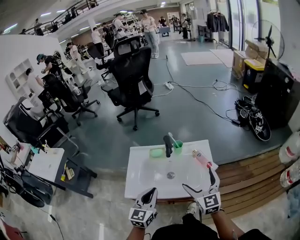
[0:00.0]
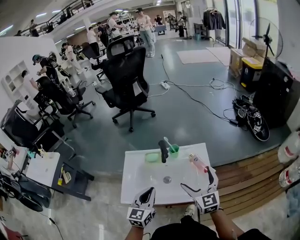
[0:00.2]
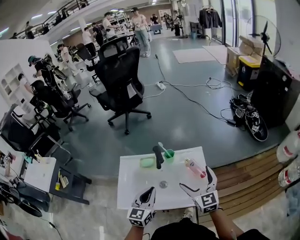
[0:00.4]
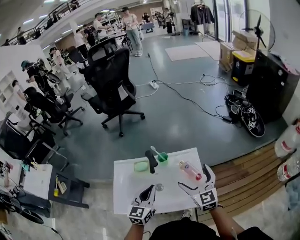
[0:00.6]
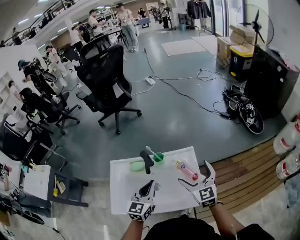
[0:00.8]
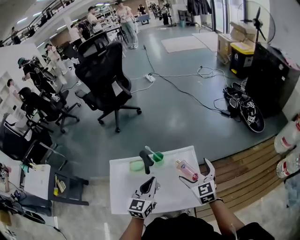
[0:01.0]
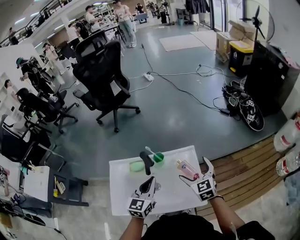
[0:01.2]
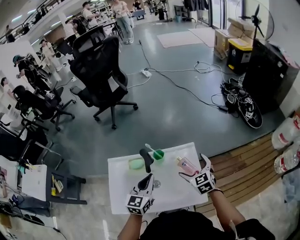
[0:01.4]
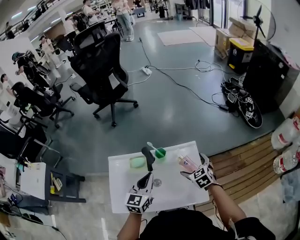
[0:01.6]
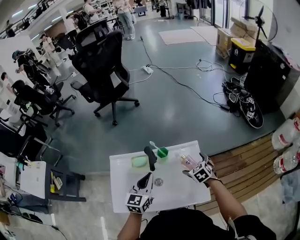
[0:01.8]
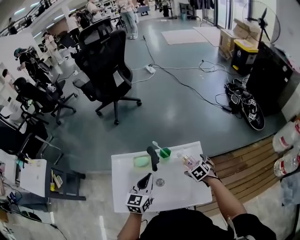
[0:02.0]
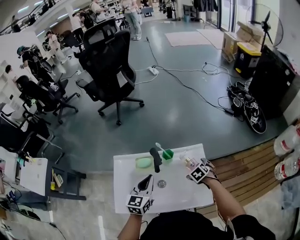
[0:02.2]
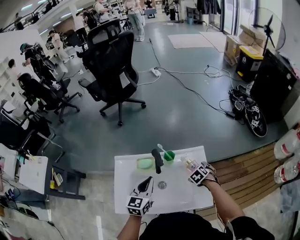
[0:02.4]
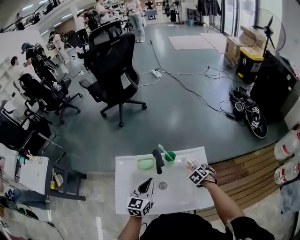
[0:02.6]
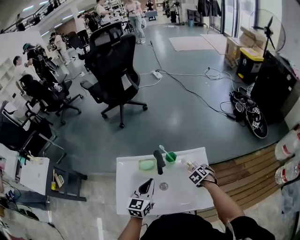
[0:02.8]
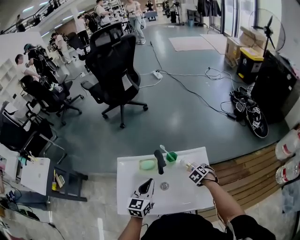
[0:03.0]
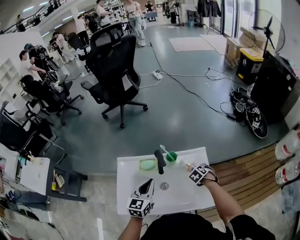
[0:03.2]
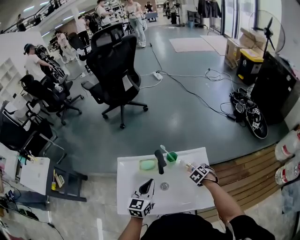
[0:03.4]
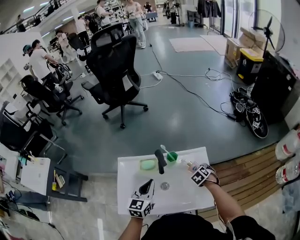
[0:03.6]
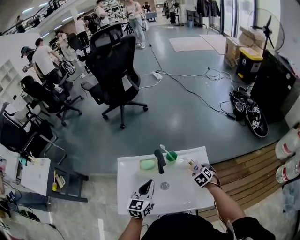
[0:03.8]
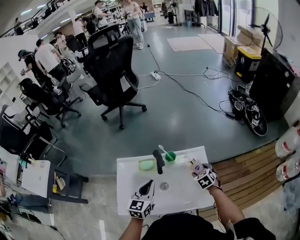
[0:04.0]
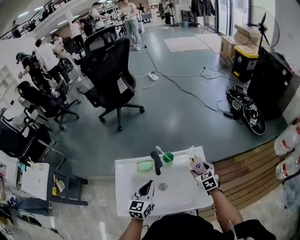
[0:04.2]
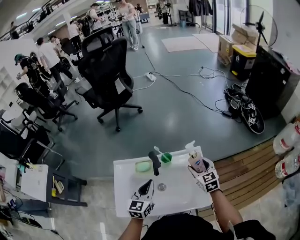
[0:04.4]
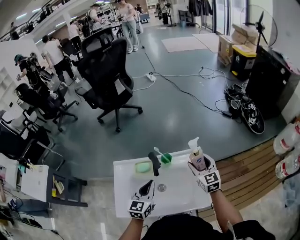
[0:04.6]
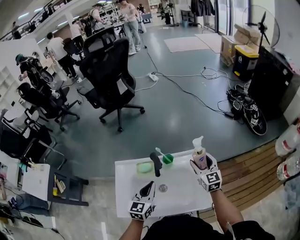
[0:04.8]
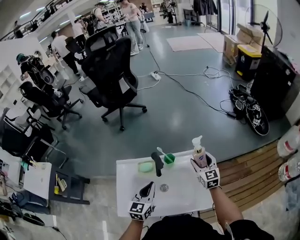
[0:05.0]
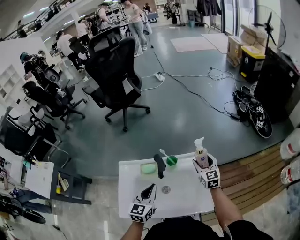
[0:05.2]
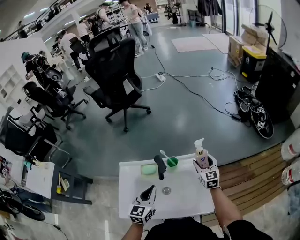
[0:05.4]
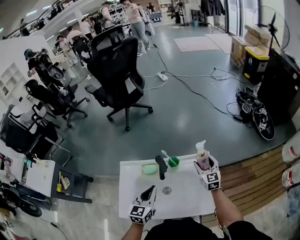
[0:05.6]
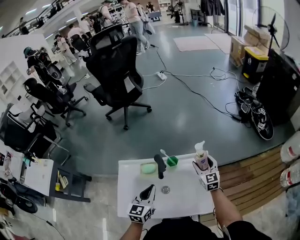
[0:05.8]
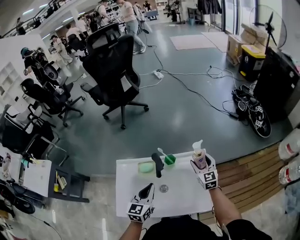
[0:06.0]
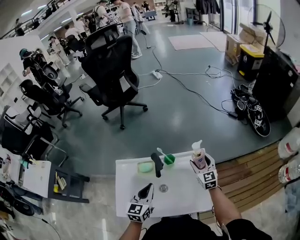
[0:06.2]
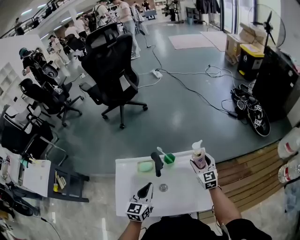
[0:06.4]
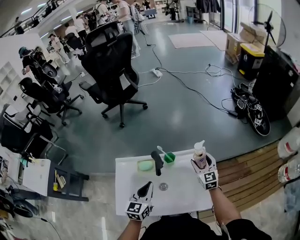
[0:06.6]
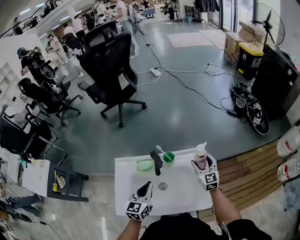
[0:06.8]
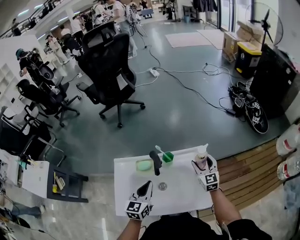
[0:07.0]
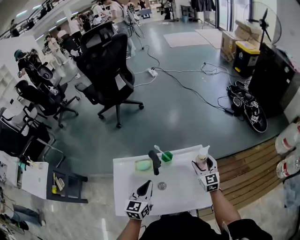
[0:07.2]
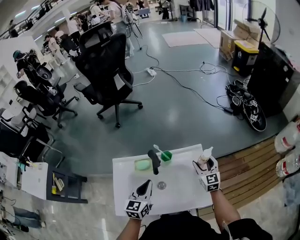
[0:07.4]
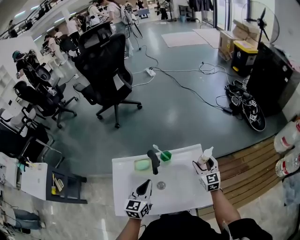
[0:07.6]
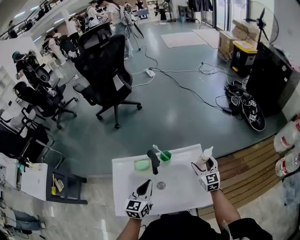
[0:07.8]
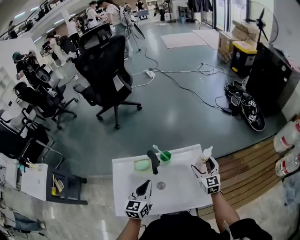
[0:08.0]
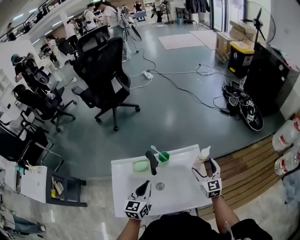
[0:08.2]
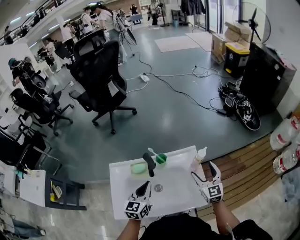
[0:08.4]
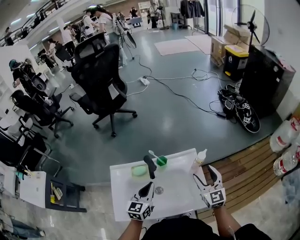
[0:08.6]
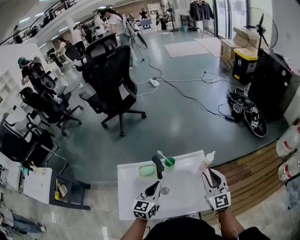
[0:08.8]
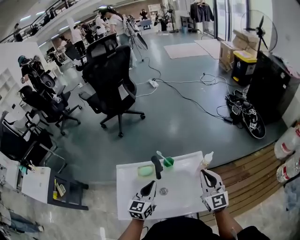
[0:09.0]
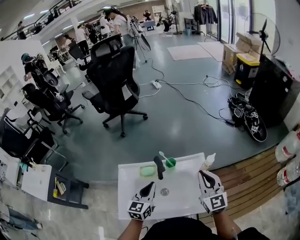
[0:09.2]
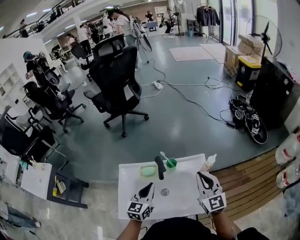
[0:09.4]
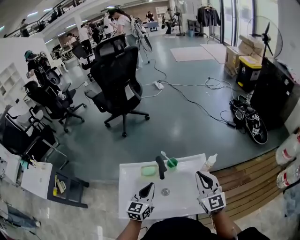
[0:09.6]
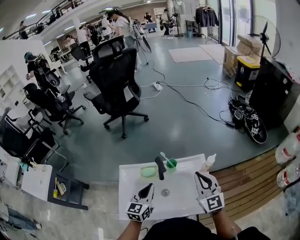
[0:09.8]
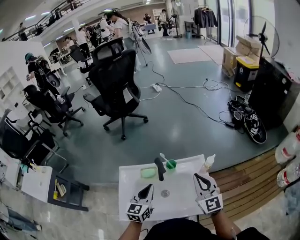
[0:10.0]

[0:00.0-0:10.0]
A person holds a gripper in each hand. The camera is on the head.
0:00.0 to 0:01.4: The left gripper is displaced forward by about 25 cm; the right gripper heads forward and downward, covering roughly 25 cm, and rotates approximately 20 degrees.
0:01.4 to 0:02.8: The left gripper shifts by about 10 cm, while the right gripper goes about 15 cm downward, and angles its fingers downward, by roughly 40 degrees.
0:02.8 to 0:04.2: The right gripper goes some 10 cm upward, and angles its fingers upward, by roughly 30 degrees.
0:04.2 to 0:05.8: The right gripper goes some 10 cm forward, reaches roughly 10 cm upward, then returns, and rotates roughly 30 degrees.
0:05.8 to 0:07.2: The grippers move only a little.
0:07.2 to 0:08.6: The right gripper shifts some 15 cm upward and backward.
0:08.6 to 0:10.0: The left gripper shifts by roughly 5 cm. The right gripper shifts approximately 10 cm to the left and upward, and closes.

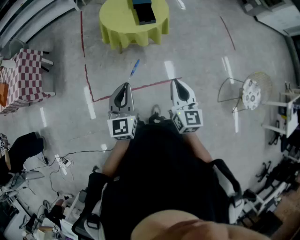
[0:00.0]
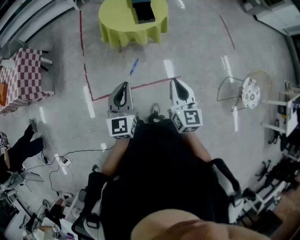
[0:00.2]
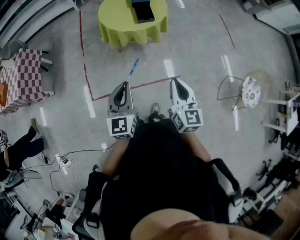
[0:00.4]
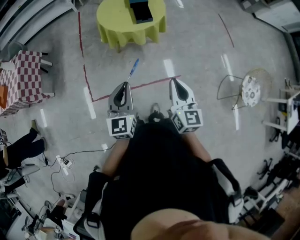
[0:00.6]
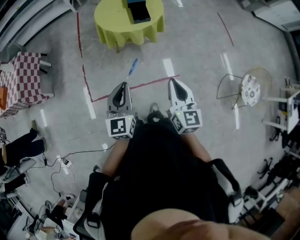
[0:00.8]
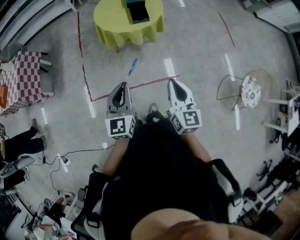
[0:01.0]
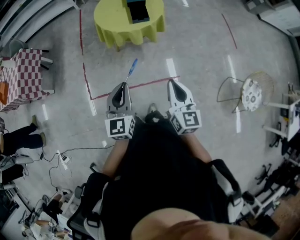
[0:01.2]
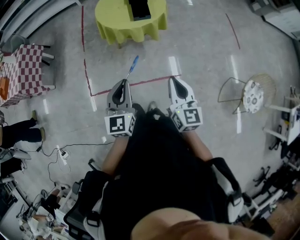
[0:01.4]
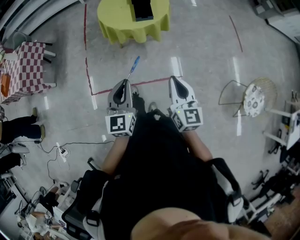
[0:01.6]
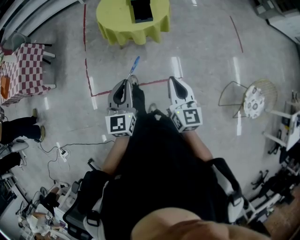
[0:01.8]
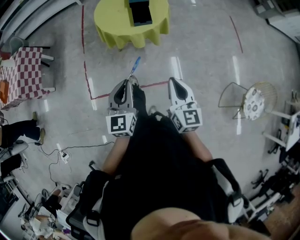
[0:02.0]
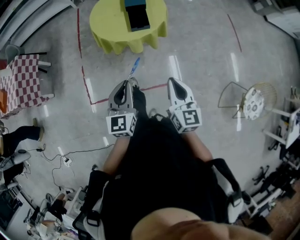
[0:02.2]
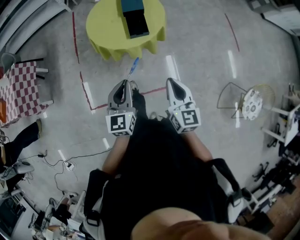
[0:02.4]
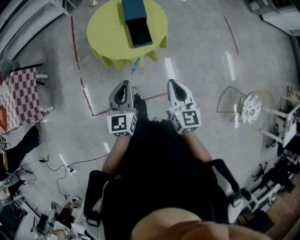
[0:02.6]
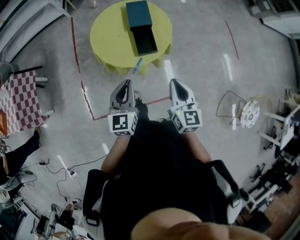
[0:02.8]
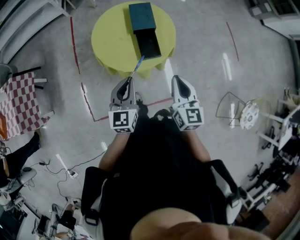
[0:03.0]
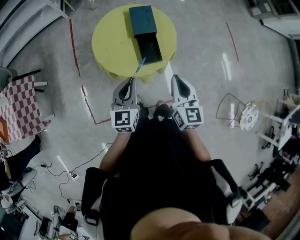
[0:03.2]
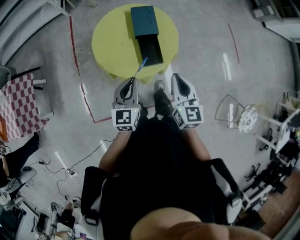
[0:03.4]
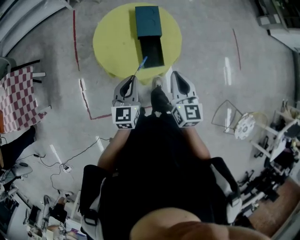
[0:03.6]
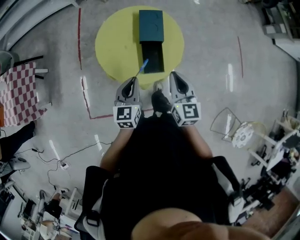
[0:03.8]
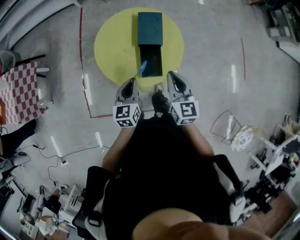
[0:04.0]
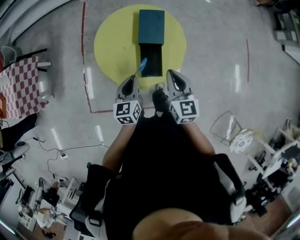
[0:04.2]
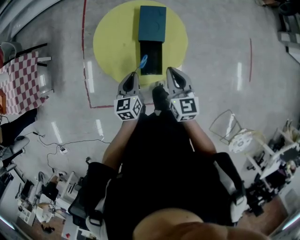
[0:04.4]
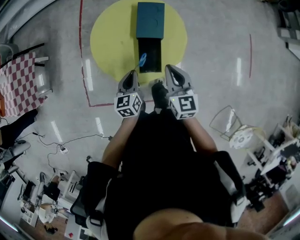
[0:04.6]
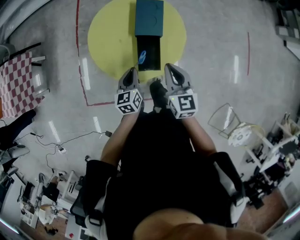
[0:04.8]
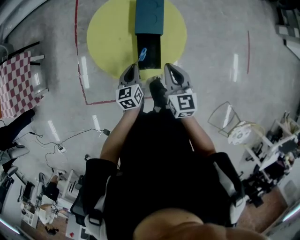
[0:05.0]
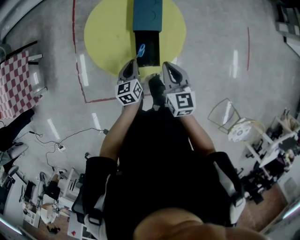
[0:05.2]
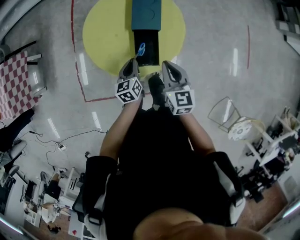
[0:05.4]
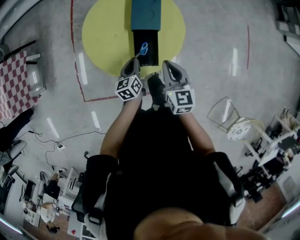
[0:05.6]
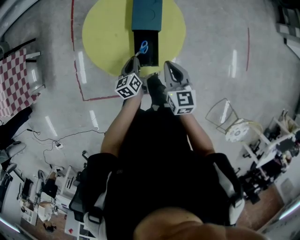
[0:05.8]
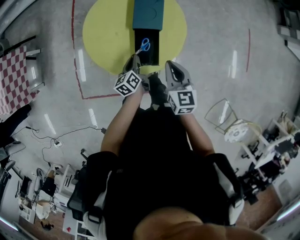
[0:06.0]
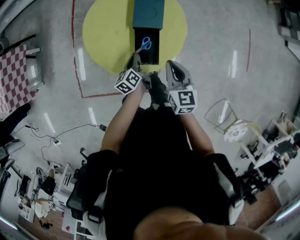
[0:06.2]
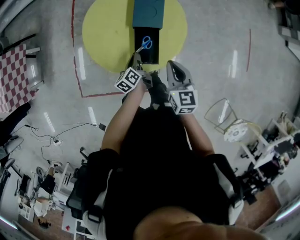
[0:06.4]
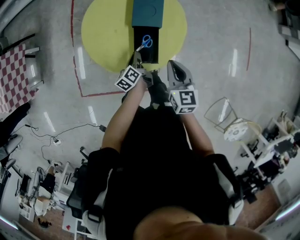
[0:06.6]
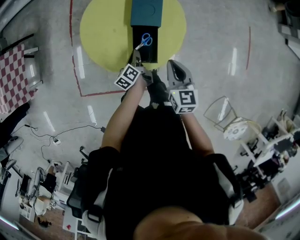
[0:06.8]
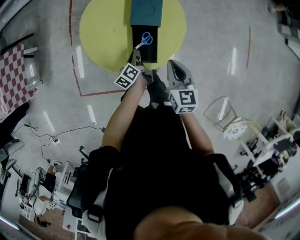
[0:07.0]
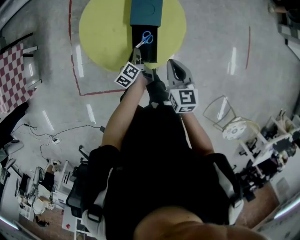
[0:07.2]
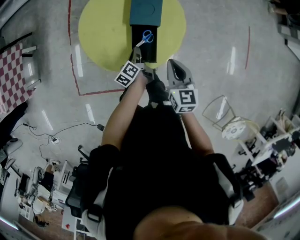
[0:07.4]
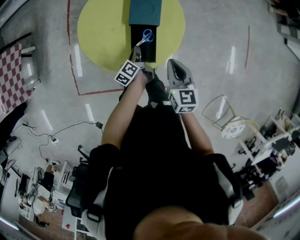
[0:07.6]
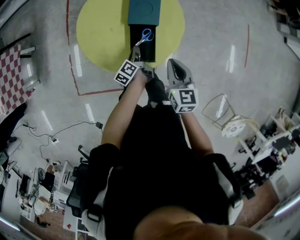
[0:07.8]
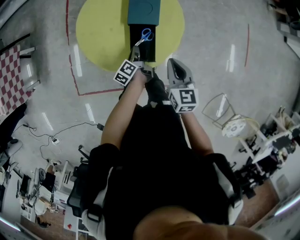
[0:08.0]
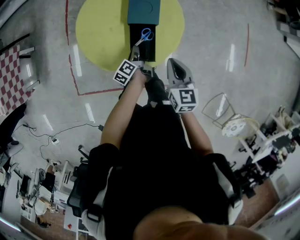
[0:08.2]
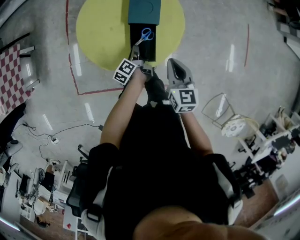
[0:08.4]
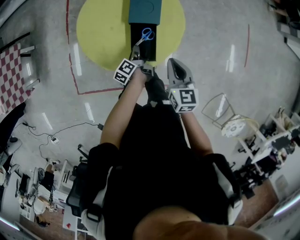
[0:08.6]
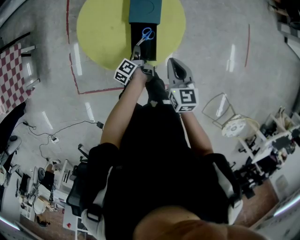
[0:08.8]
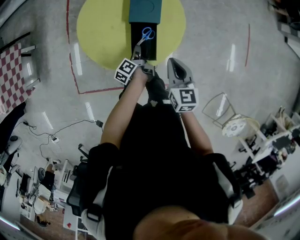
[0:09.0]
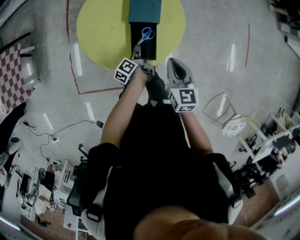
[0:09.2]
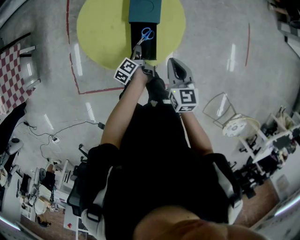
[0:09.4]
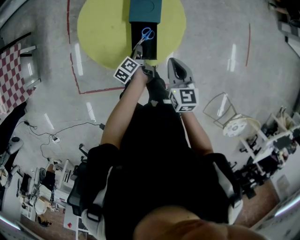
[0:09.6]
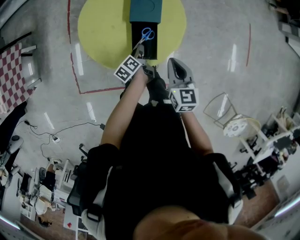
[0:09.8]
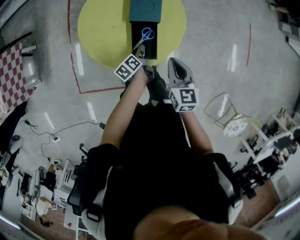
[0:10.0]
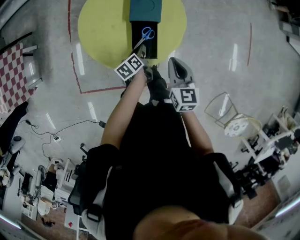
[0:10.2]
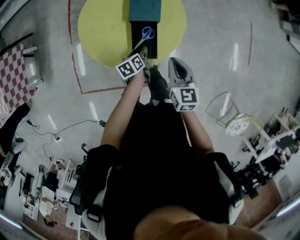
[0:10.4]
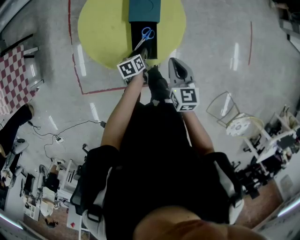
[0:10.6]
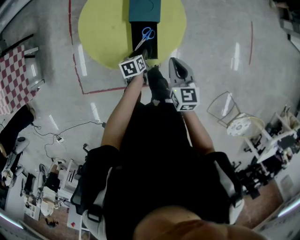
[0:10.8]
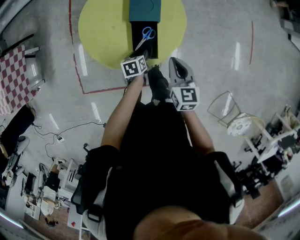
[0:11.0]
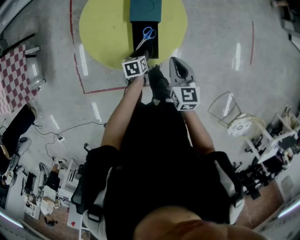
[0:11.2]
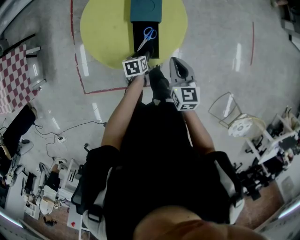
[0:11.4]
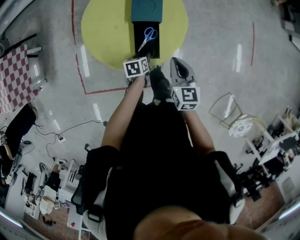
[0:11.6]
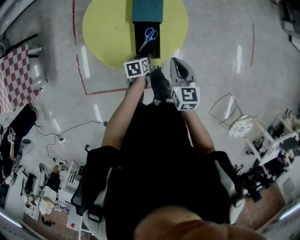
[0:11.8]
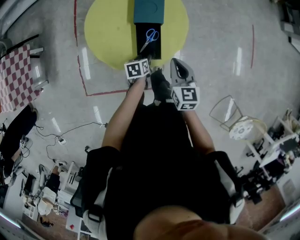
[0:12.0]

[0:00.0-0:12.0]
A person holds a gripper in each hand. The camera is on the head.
0:00.0 to 0:01.6: Both grippers move to the right, approximately 5 cm.
0:01.6 to 0:03.0: The two grippers go approximately 35 cm forward.
0:03.0 to 0:04.4: The right gripper moves forward, roughly 20 cm, and changes its angle by approximately 20 degrees; the left gripper shifts about 20 cm forward and downward, and rotates about 30 degrees.
0:04.4 to 0:06.0: The left gripper moves downward, about 15 cm, and swivels about 30 degrees. Meanwhile the right gripper goes roughly 5 cm downward.
0:06.0 to 0:07.6: The left gripper changes place by roughly 5 cm, and changes its angle by about 20 degrees.
0:07.6 to 0:09.0: The grippers make only small movements.
0:09.0 to 0:10.4: The left gripper changes its angle by approximately 40 degrees, and opens.
0:10.4 to 0:12.0: The left gripper swivels roughly 20 degrees.

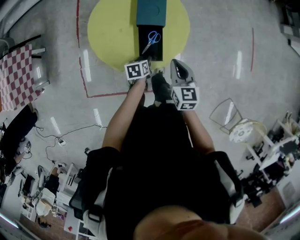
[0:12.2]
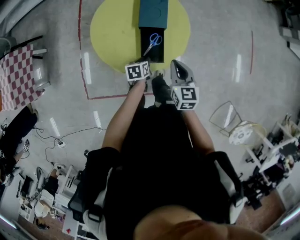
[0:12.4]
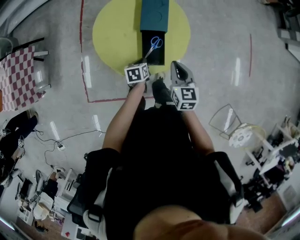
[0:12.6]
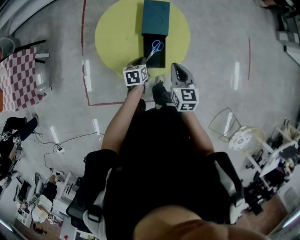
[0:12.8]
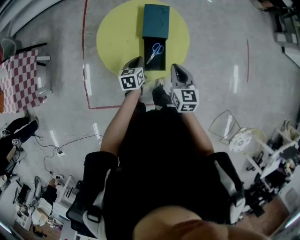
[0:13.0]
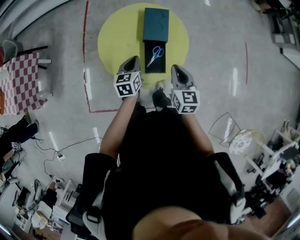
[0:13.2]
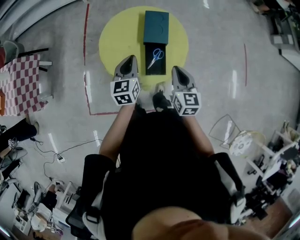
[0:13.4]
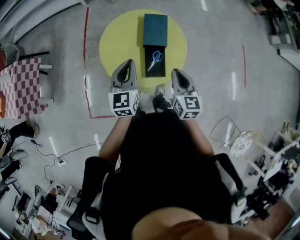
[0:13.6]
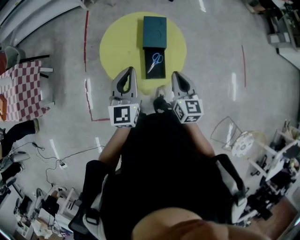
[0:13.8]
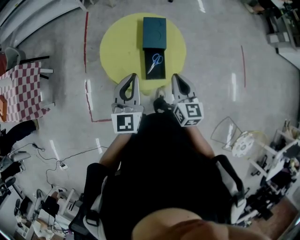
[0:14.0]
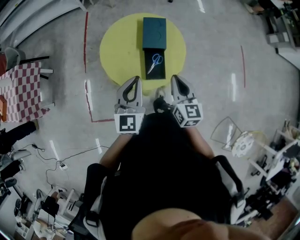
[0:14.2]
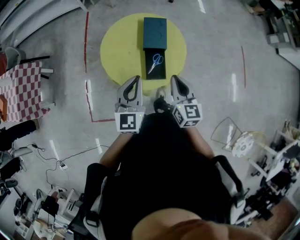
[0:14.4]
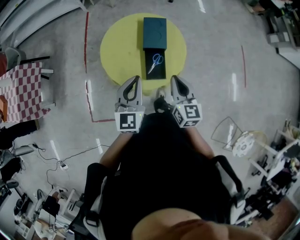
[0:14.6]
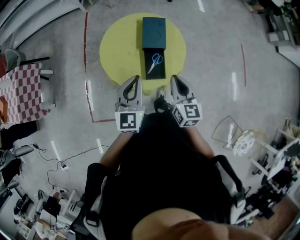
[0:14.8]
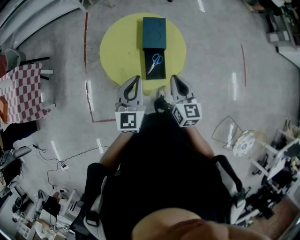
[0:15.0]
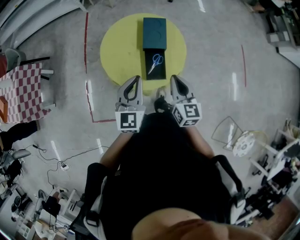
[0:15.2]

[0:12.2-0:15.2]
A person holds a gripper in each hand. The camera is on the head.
0:12.2 to 0:13.8: The left gripper shifts roughly 35 cm upward, tips its fingers upward by roughly 50 degrees, and closes. The right gripper travels upward by roughly 10 cm.
0:13.8 to 0:15.2: The grippers make only small movements.
